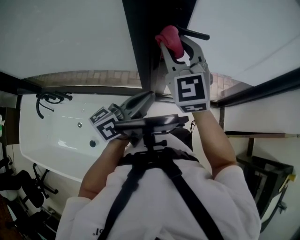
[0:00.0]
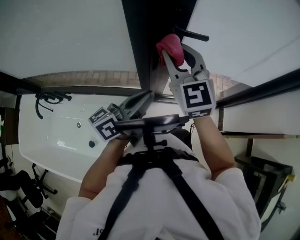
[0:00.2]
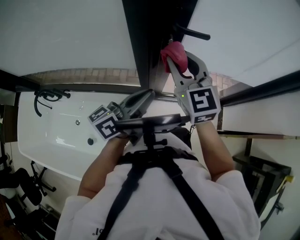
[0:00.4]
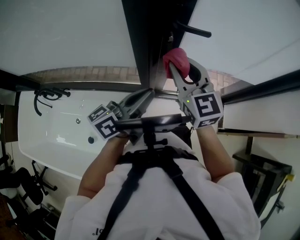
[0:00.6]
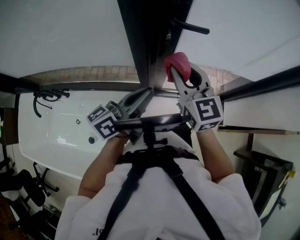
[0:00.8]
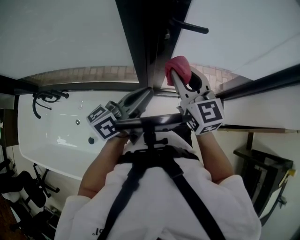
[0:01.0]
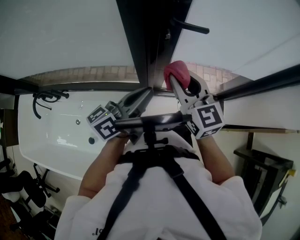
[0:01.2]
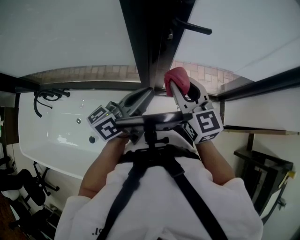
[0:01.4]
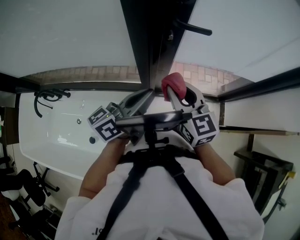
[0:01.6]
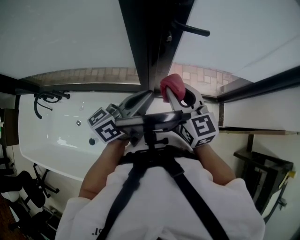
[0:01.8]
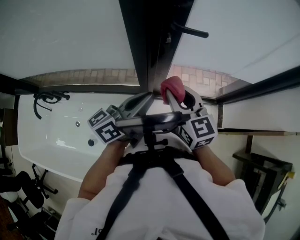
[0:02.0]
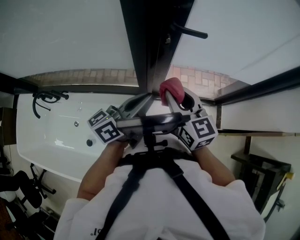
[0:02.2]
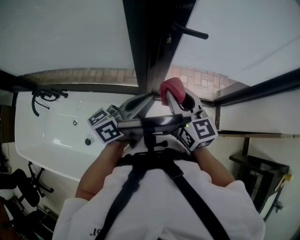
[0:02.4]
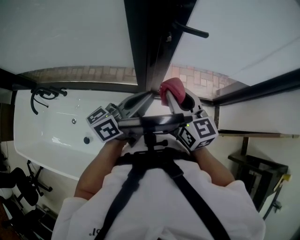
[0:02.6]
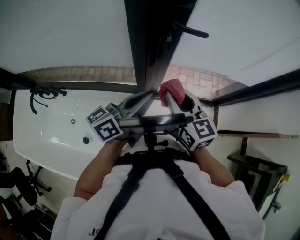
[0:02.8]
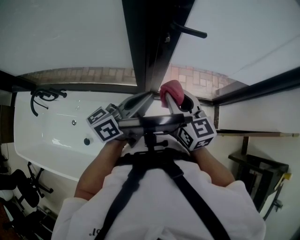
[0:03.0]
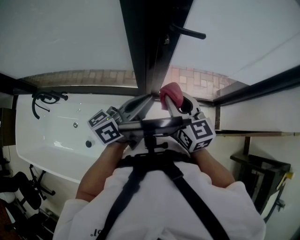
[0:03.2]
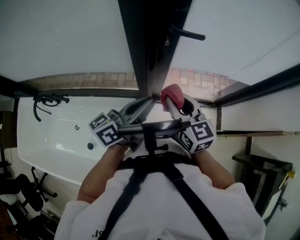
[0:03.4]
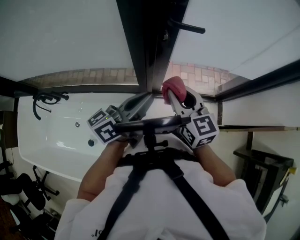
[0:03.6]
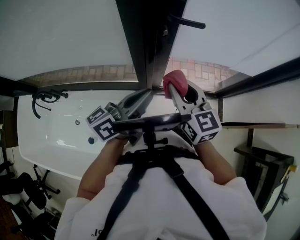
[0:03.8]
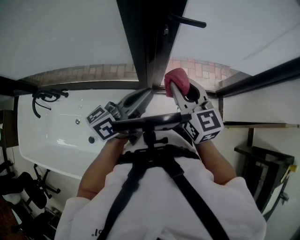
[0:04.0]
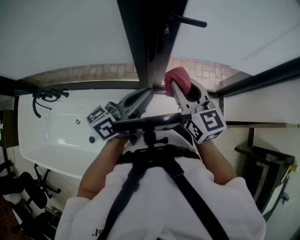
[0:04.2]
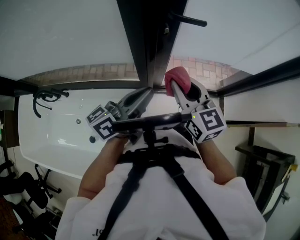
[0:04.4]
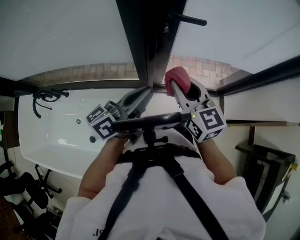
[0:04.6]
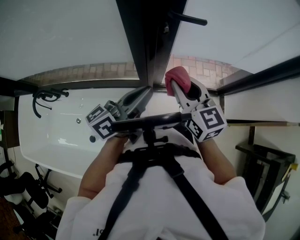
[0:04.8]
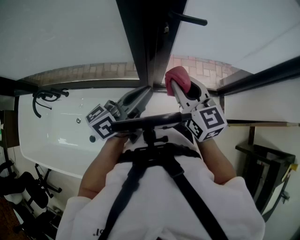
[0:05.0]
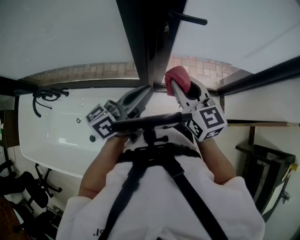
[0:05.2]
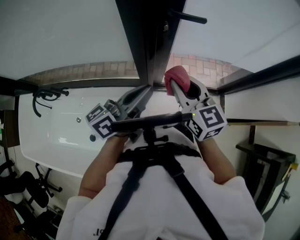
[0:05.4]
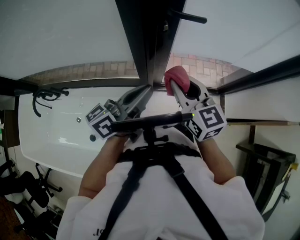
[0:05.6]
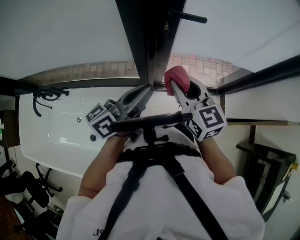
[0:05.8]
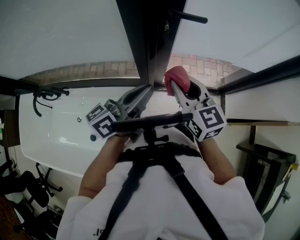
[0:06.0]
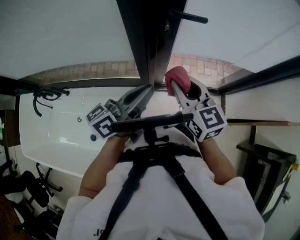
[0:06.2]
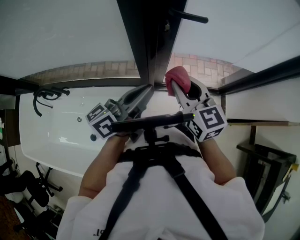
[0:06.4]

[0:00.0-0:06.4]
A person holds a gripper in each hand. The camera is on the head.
0:00.0 to 0:01.6: The right gripper is displaced downward and backward by some 15 cm, and changes its angle by about 30 degrees.
0:01.6 to 0:04.8: There are only small adjustments of the grippers.
0:04.8 to 0:06.4: Both grippers stay put.

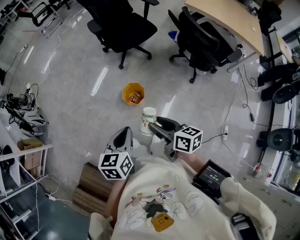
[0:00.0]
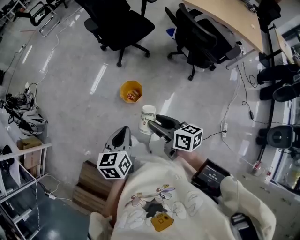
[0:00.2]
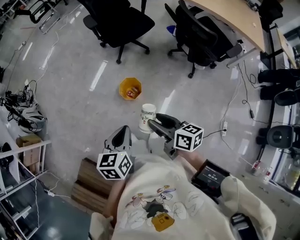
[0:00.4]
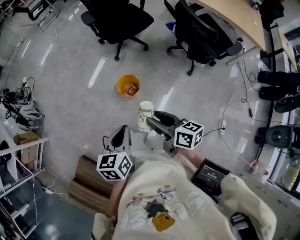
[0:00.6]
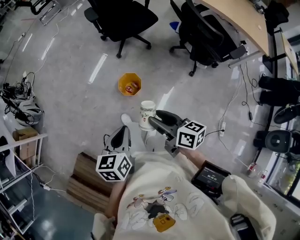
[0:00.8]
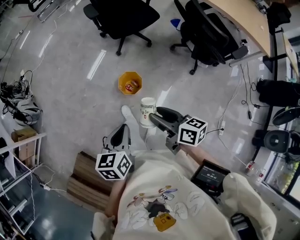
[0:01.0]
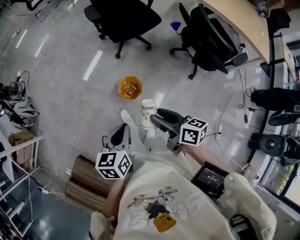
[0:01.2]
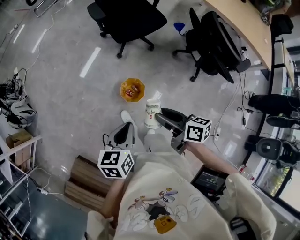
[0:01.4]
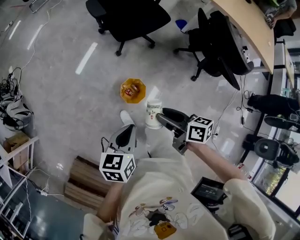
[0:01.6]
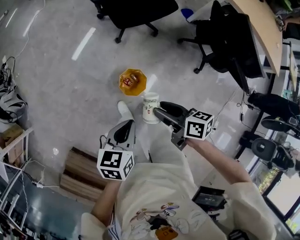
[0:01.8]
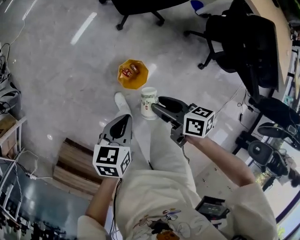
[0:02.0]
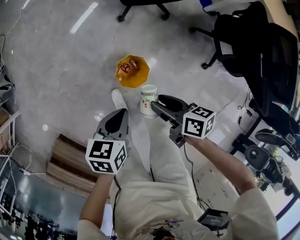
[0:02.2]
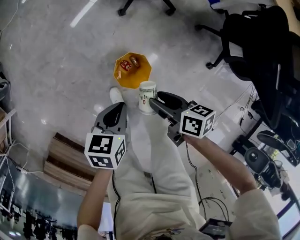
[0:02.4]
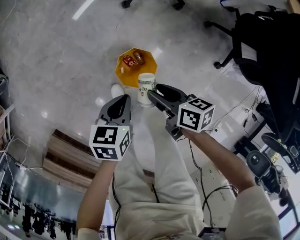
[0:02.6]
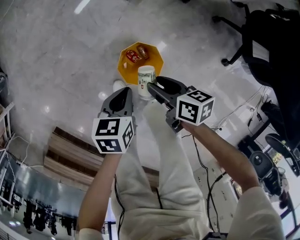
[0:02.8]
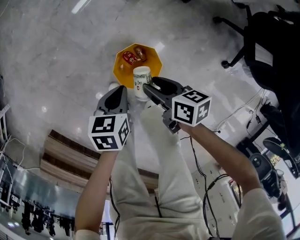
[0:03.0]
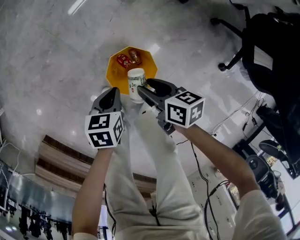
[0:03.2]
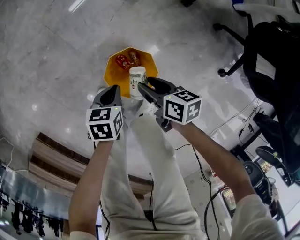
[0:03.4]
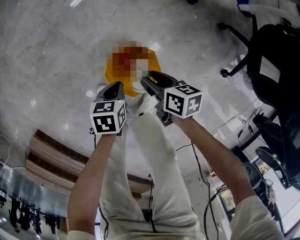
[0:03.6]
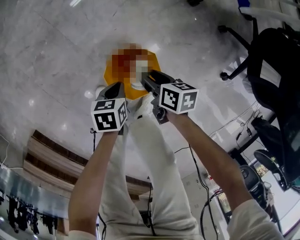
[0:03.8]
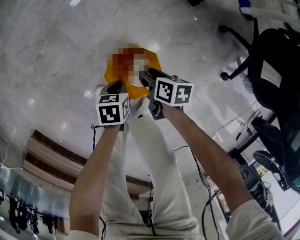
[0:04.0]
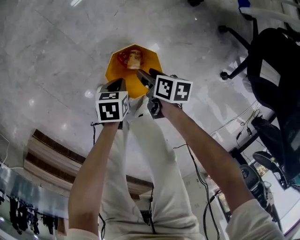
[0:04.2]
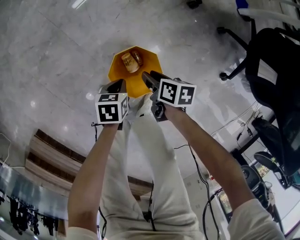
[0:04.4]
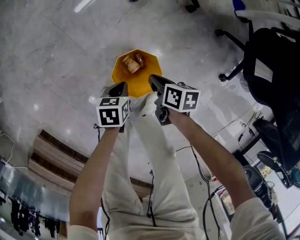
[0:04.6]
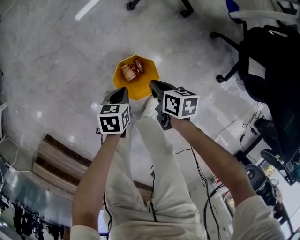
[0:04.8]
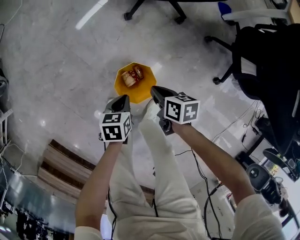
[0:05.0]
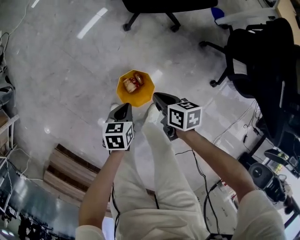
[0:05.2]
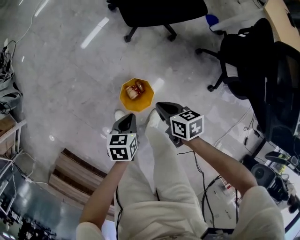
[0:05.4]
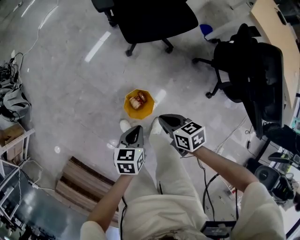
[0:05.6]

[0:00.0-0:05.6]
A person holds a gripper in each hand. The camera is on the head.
0:00.0 to 0:01.4: The grippers both shift forward by some 15 cm.
0:01.4 to 0:02.8: Both grippers move downward, about 50 cm. The right gripper changes its angle by approximately 20 degrees; the left gripper swivels about 20 degrees.
0:02.8 to 0:04.2: Both grippers travel together downward, approximately 25 cm.
0:04.2 to 0:05.6: The two grippers go some 40 cm upward. The left gripper rotates roughly 20 degrees. The right gripper turns by some 30 degrees, and closes its fingers.

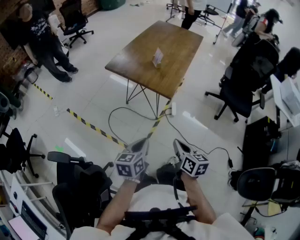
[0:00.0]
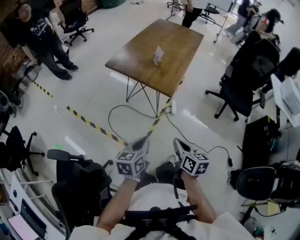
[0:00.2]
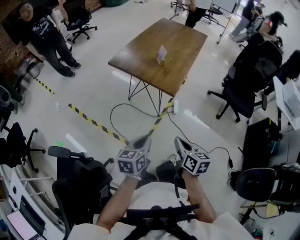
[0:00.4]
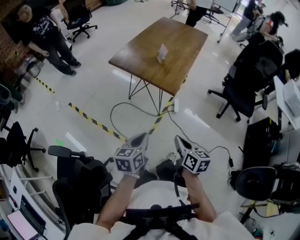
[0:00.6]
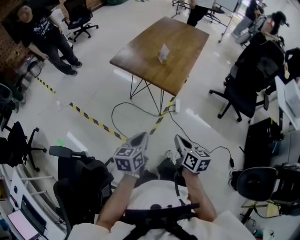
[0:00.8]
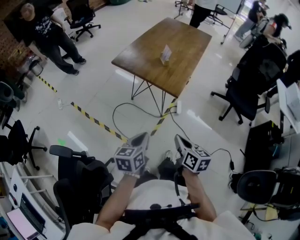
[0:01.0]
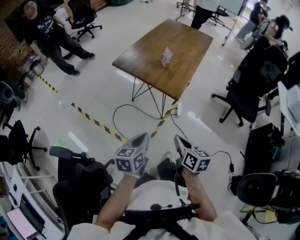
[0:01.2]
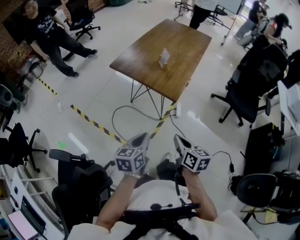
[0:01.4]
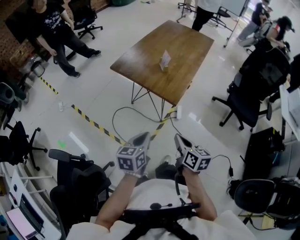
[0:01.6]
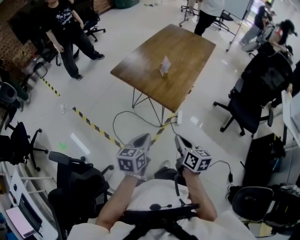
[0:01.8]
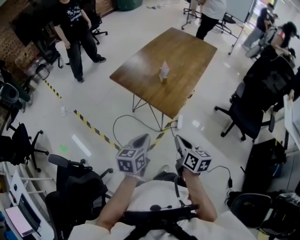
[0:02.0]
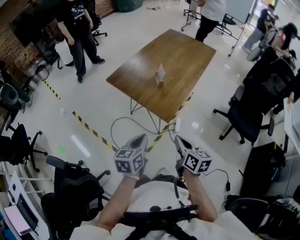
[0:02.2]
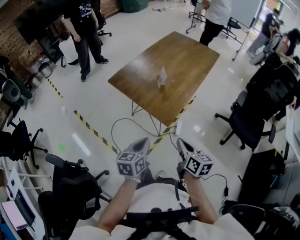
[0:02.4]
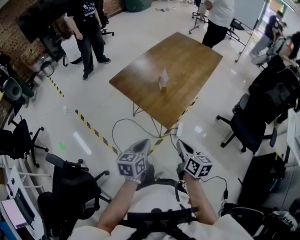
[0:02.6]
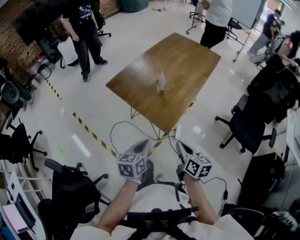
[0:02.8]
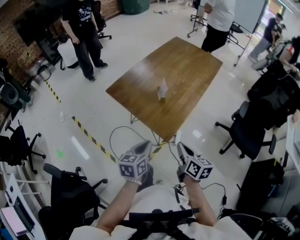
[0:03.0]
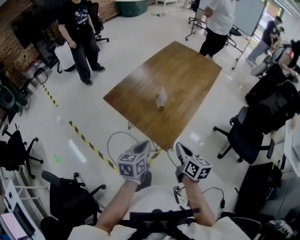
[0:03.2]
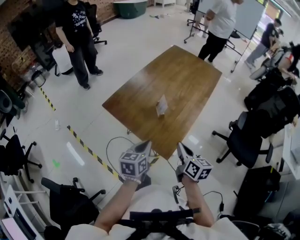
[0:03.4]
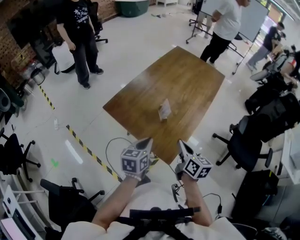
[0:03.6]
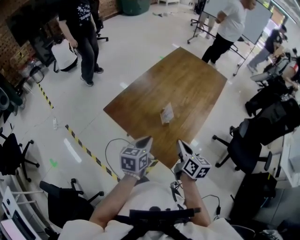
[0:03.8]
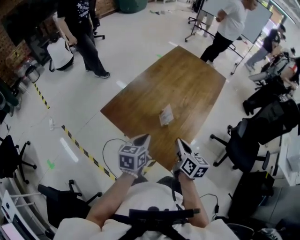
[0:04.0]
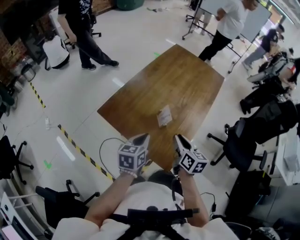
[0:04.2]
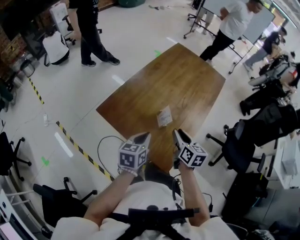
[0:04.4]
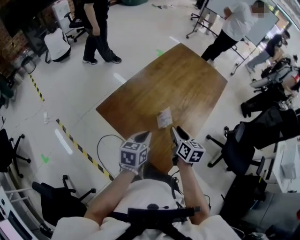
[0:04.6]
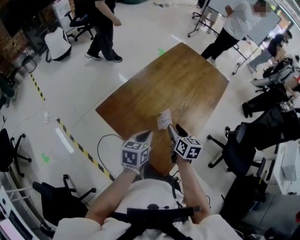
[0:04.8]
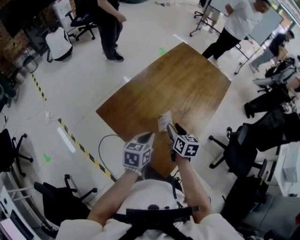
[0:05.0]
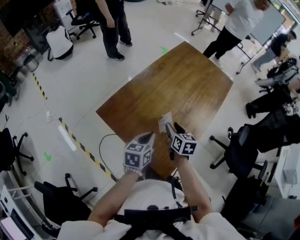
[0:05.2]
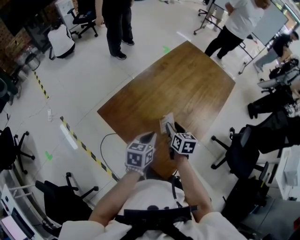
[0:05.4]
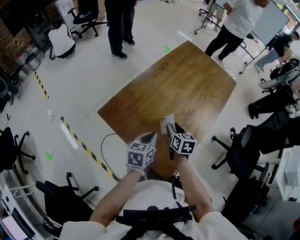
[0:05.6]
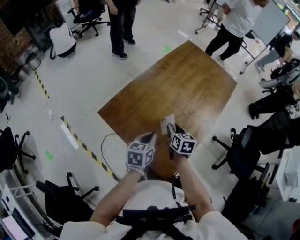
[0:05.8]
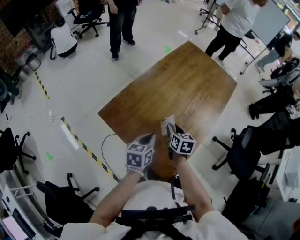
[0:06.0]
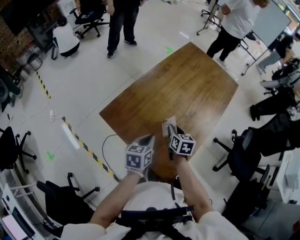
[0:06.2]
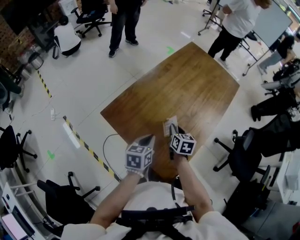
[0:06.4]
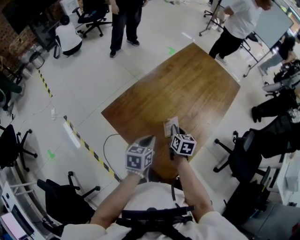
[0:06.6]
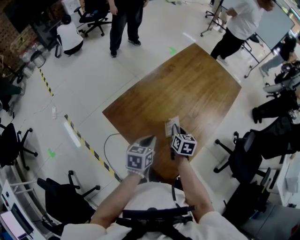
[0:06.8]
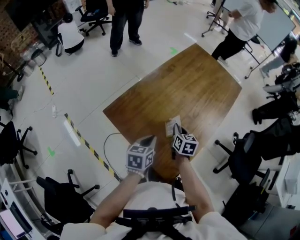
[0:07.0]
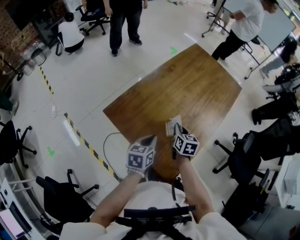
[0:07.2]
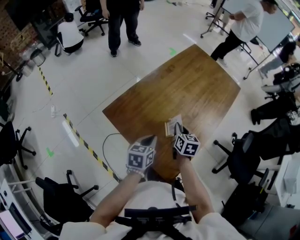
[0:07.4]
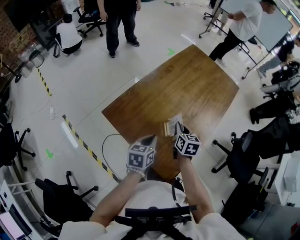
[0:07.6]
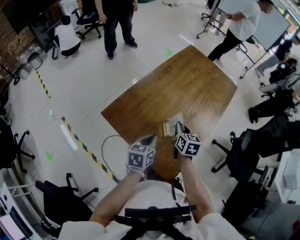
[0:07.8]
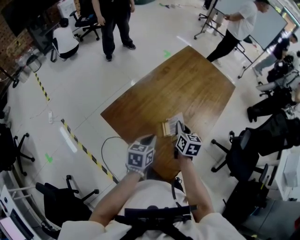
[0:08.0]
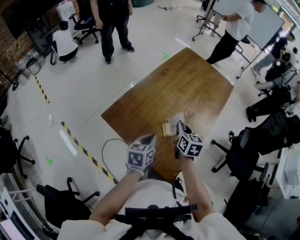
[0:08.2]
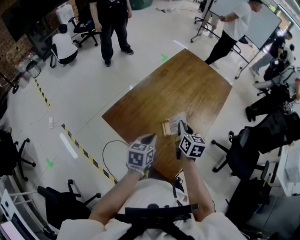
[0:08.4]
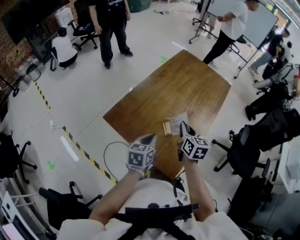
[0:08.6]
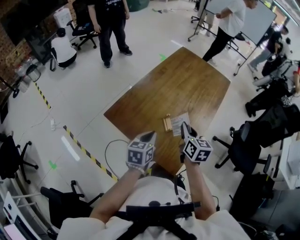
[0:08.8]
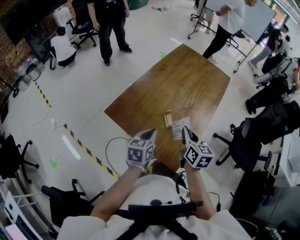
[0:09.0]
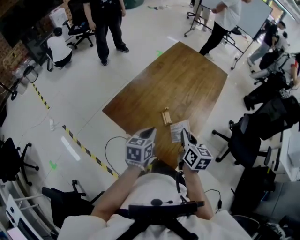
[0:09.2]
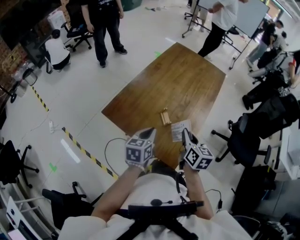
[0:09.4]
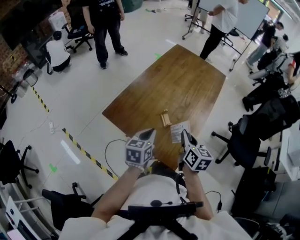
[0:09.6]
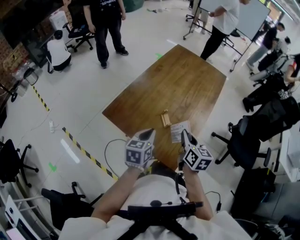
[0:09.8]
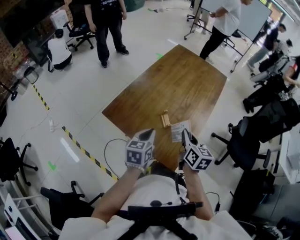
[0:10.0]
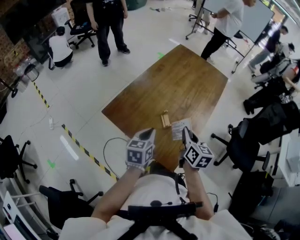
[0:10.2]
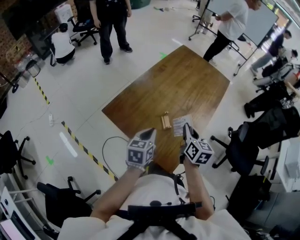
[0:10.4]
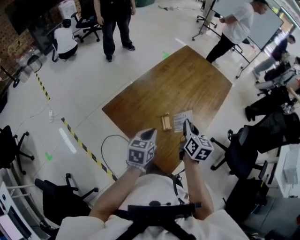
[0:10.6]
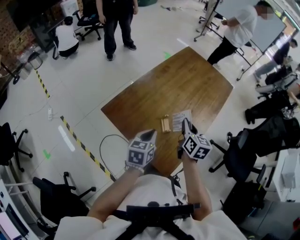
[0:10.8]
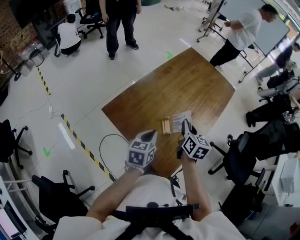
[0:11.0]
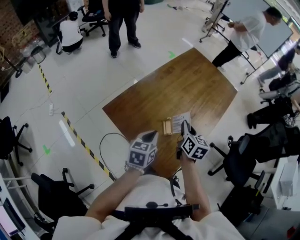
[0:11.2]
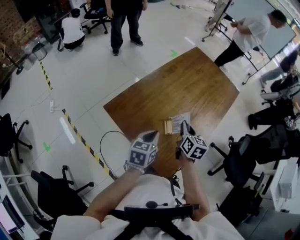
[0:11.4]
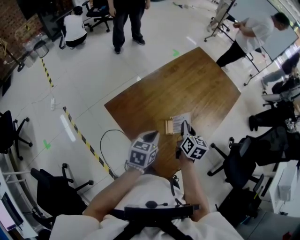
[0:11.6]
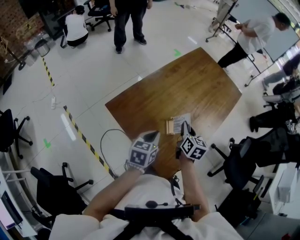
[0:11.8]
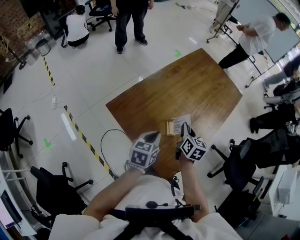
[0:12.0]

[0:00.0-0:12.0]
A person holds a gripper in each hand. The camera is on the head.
0:00.0 to 0:01.6: Both grippers travel together forward, some 10 cm.
0:01.6 to 0:03.0: The grippers both shift forward and to the right by approximately 20 cm.
0:03.0 to 0:04.4: The two grippers go about 25 cm forward. The right gripper opens.
0:04.4 to 0:06.0: The left gripper is displaced forward by about 5 cm, while the right gripper moves forward and downward, roughly 15 cm.
0:06.0 to 0:07.6: The right gripper closes.
0:07.6 to 0:09.0: The left gripper changes place by about 5 cm. Meanwhile the right gripper is displaced backward and upward by some 15 cm.
0:09.0 to 0:10.4: The grippers make only small movements.
0:10.4 to 0:12.0: The right gripper is displaced forward and downward by approximately 10 cm.
